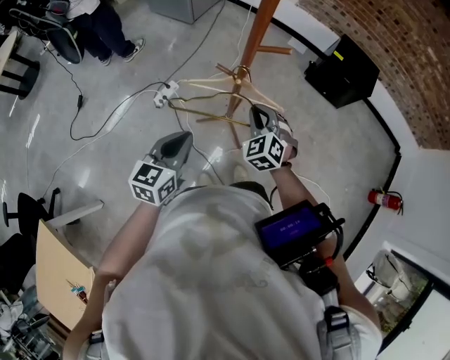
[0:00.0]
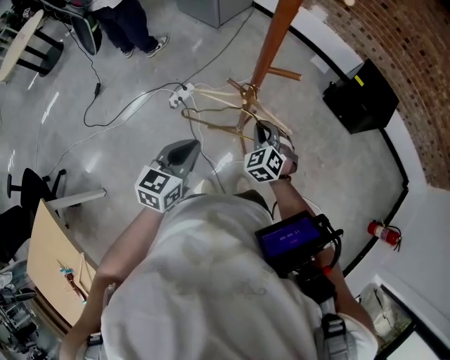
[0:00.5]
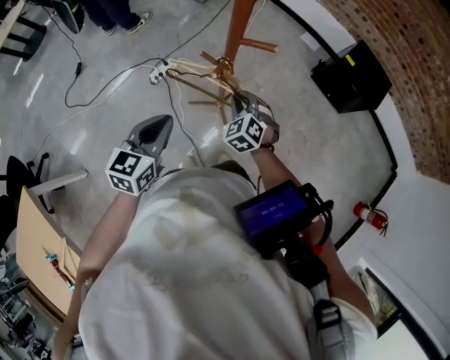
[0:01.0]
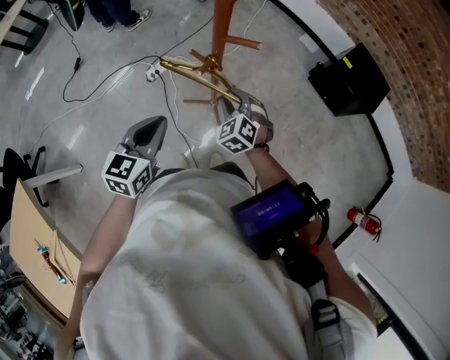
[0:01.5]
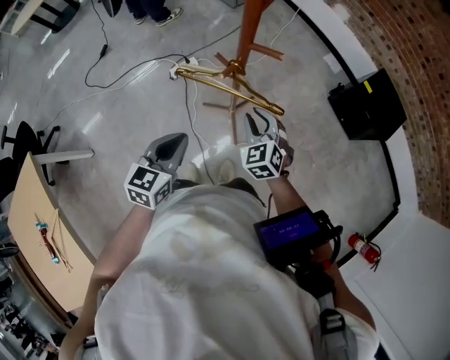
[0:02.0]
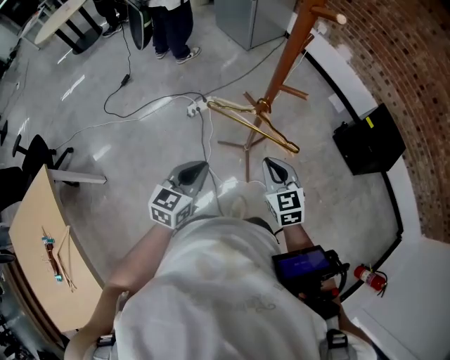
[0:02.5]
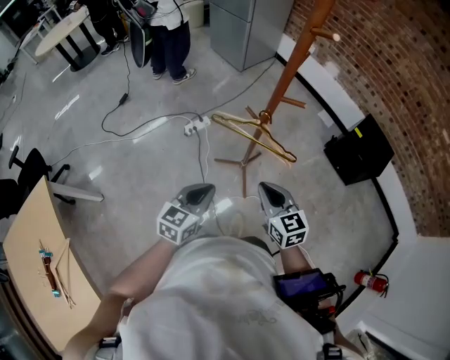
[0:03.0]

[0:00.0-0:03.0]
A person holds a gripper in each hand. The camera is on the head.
0:00.0 to 0:01.5: The left gripper moves some 5 cm. Meanwhile the right gripper moves downward, approximately 5 cm, and opens its fingers.
0:01.5 to 0:03.0: The left gripper heads backward, covering about 15 cm. Meanwhile the right gripper is displaced backward and upward by about 20 cm, changes its angle by roughly 40 degrees, and closes its fingers.

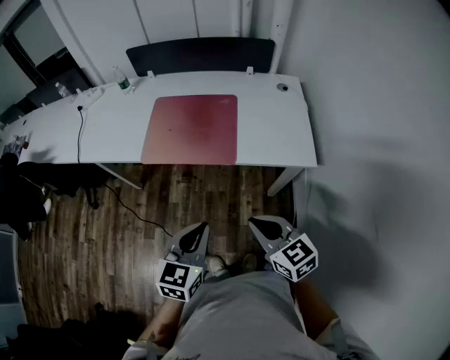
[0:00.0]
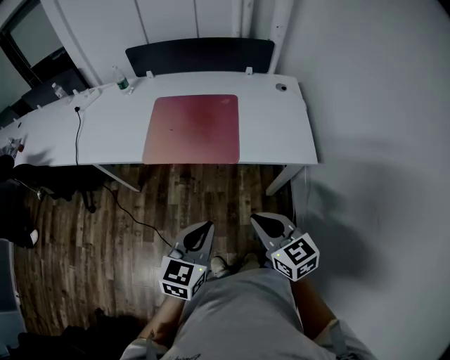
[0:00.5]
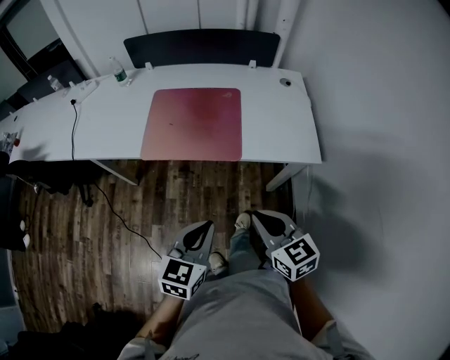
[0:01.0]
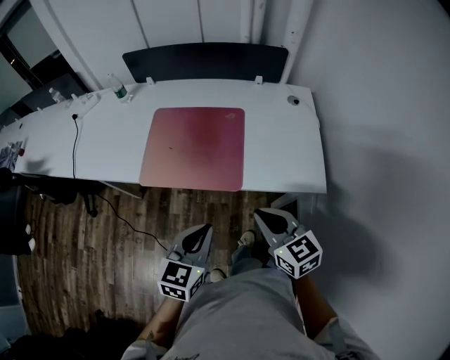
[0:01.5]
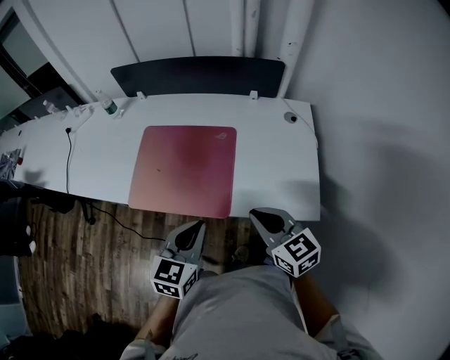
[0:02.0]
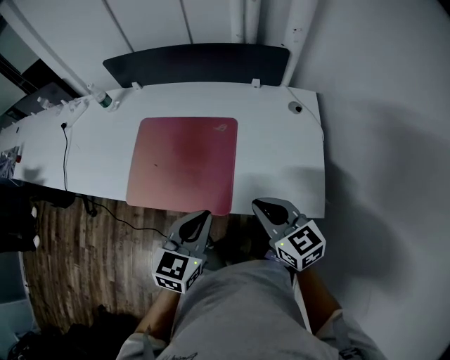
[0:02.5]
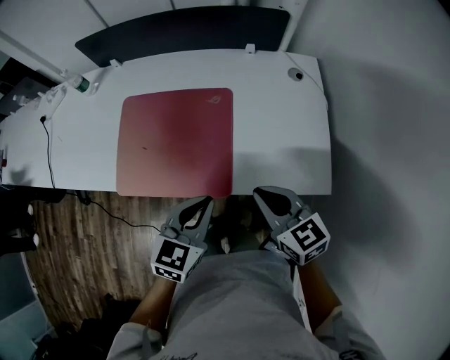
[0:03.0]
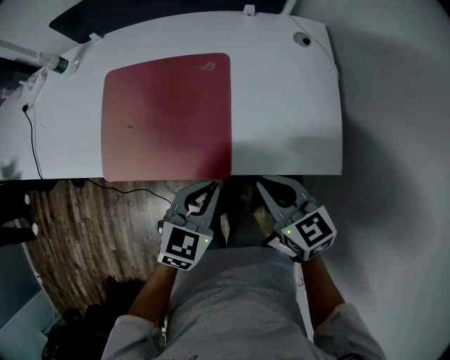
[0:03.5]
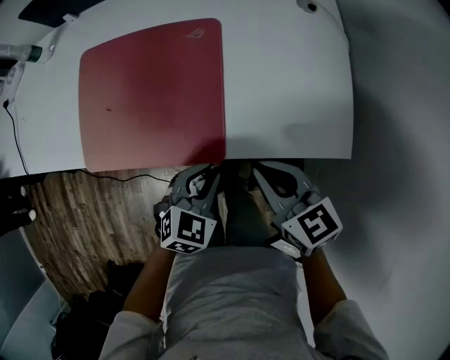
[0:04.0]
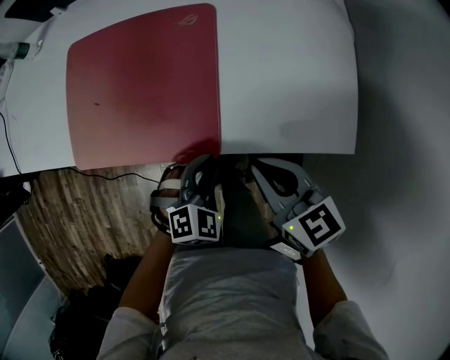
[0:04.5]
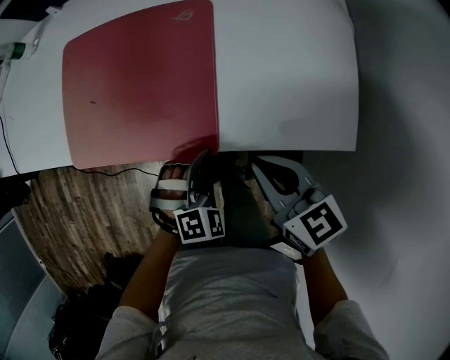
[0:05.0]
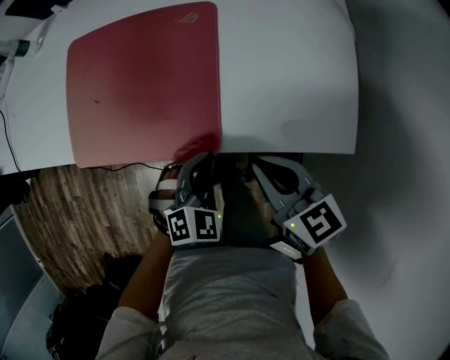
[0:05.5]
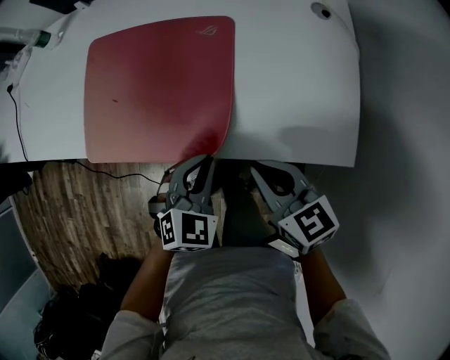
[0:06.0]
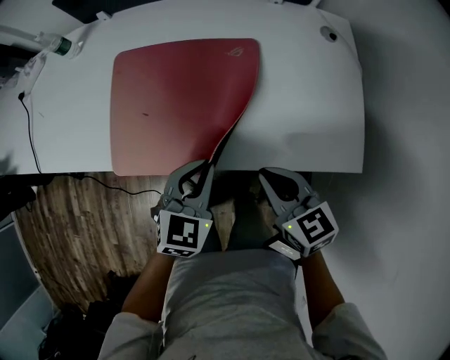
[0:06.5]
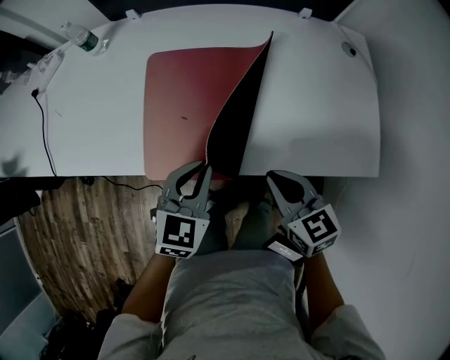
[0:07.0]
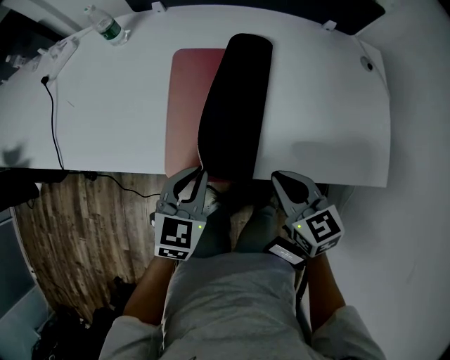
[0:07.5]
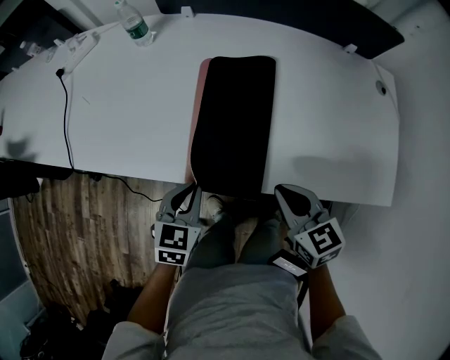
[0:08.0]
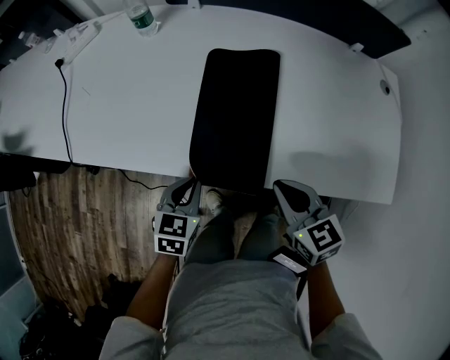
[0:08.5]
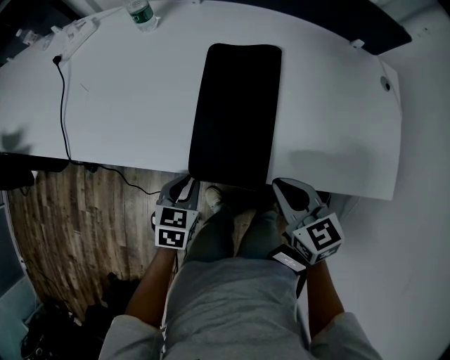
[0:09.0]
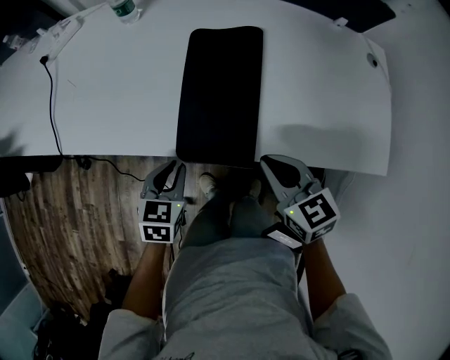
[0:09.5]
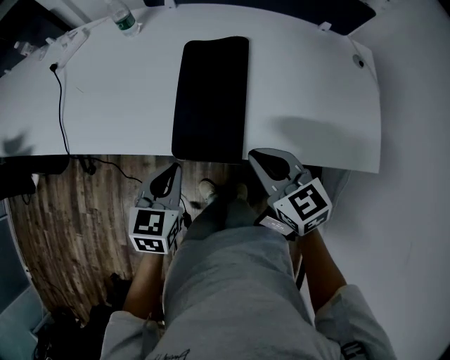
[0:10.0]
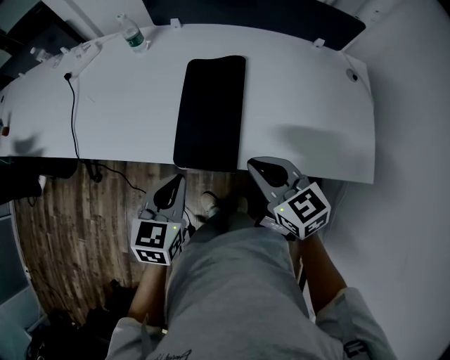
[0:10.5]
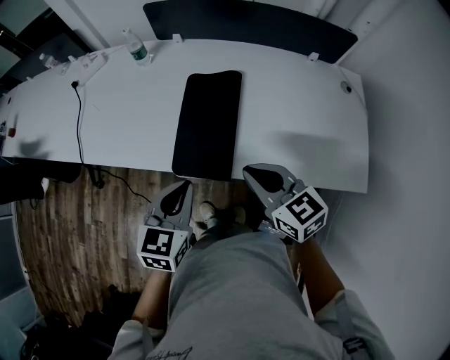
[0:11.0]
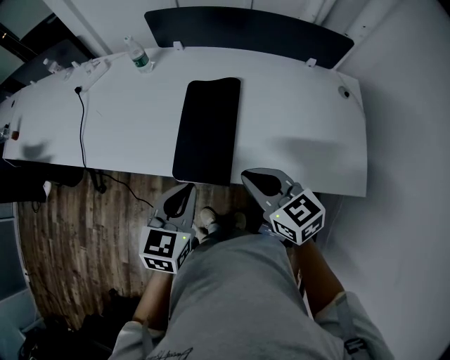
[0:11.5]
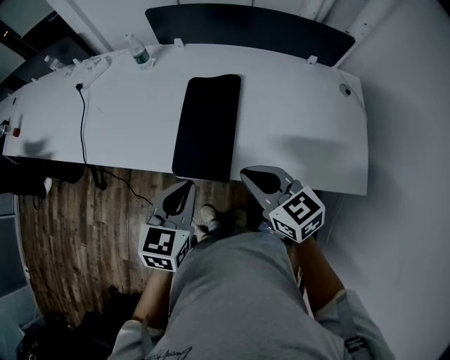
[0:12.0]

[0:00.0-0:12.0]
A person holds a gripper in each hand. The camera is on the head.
0:00.0 to 0:02.0: The grippers both shift forward by roughly 25 cm.
0:02.0 to 0:04.0: The right gripper is displaced downward by roughly 15 cm. The left gripper heads downward, covering some 20 cm, and rotates roughly 40 degrees.
0:06.0 to 0:08.0: Both grippers move to the left, about 30 cm. The left gripper turns by some 30 degrees.
0:08.0 to 0:10.0: Both grippers move upward, roughly 5 cm.
0:10.0 to 0:12.0: The right gripper is displaced upward by about 5 cm. Meanwhile the left gripper is displaced upward and to the right by about 15 cm.

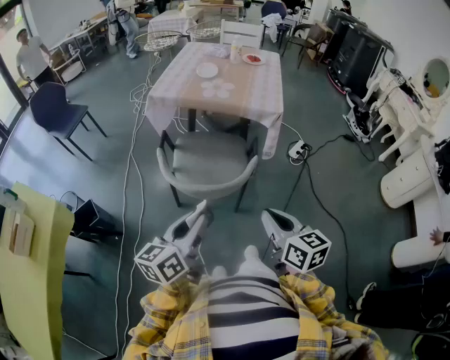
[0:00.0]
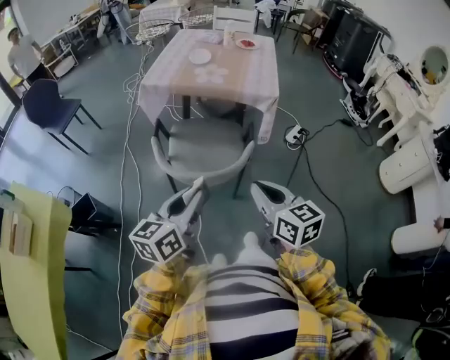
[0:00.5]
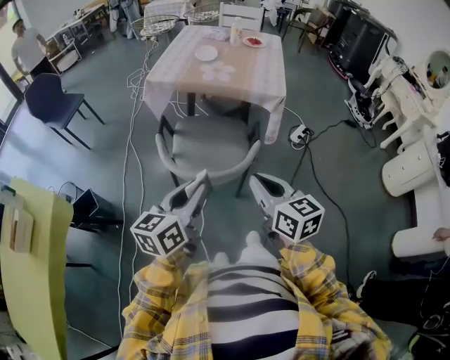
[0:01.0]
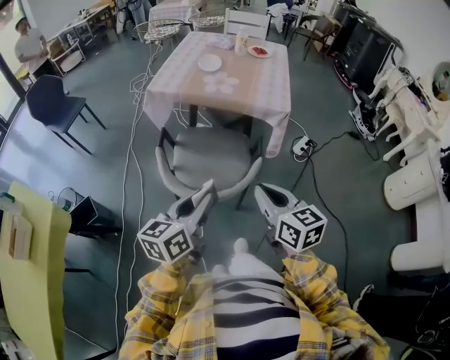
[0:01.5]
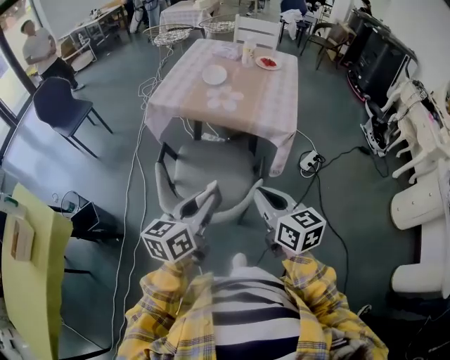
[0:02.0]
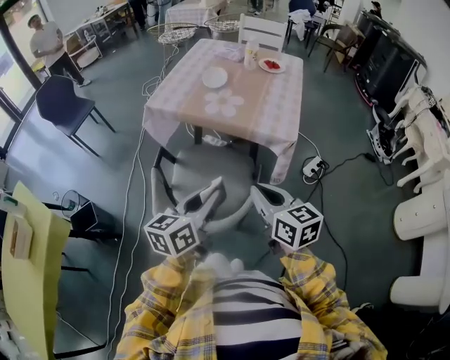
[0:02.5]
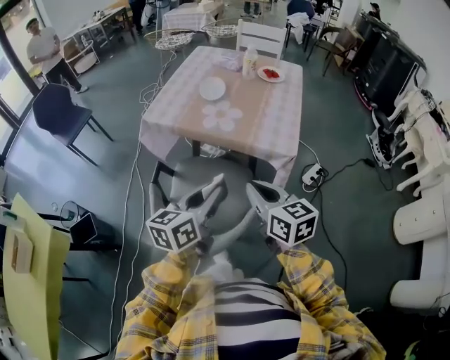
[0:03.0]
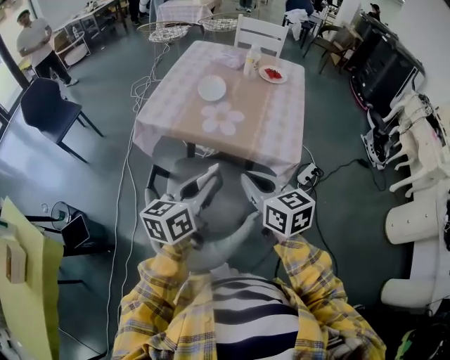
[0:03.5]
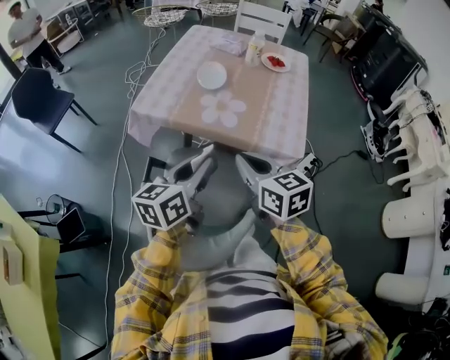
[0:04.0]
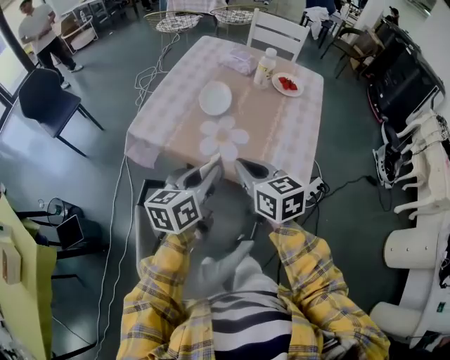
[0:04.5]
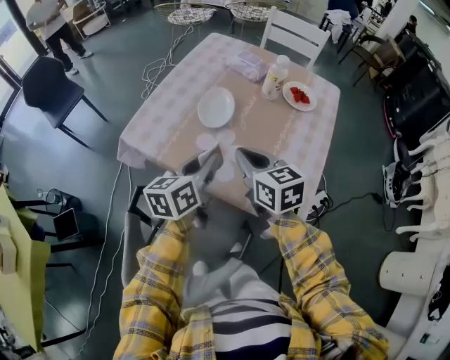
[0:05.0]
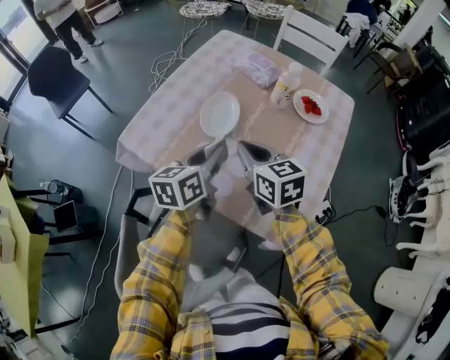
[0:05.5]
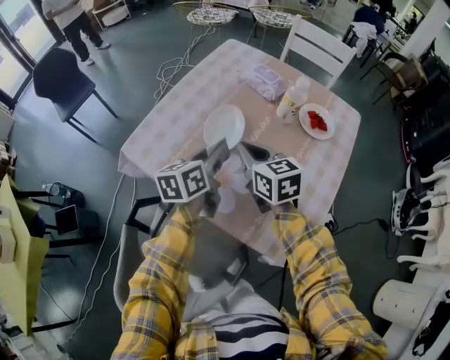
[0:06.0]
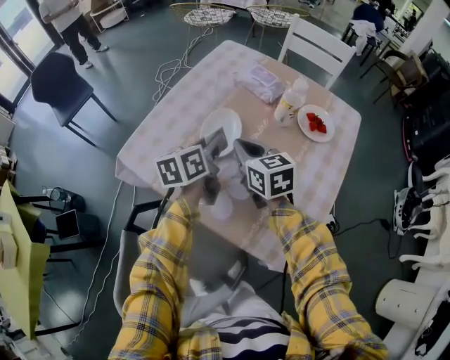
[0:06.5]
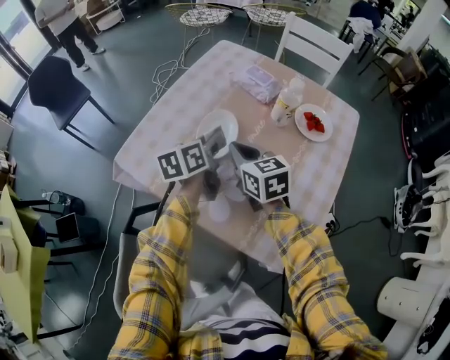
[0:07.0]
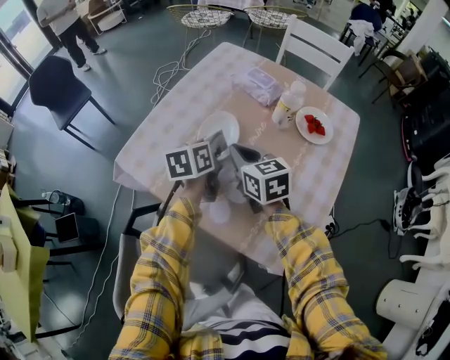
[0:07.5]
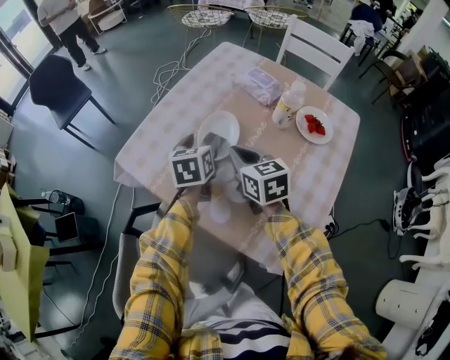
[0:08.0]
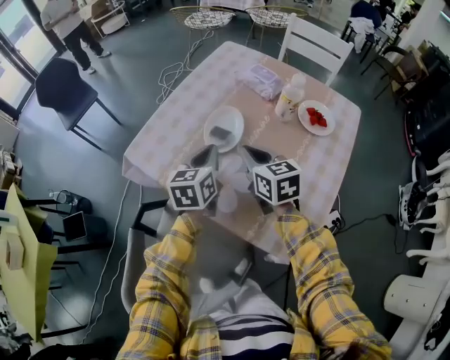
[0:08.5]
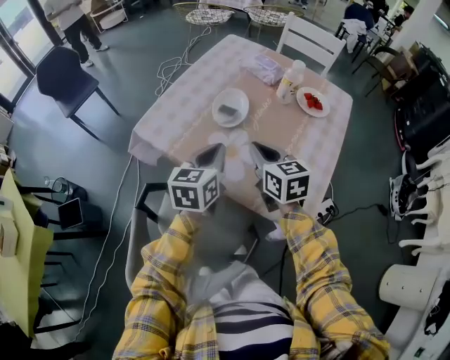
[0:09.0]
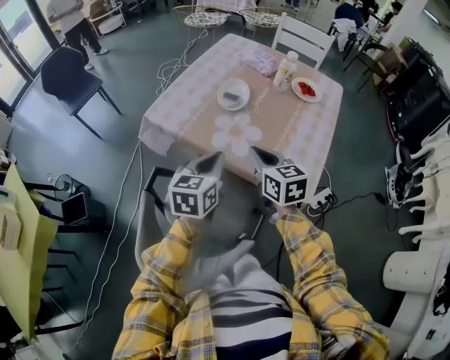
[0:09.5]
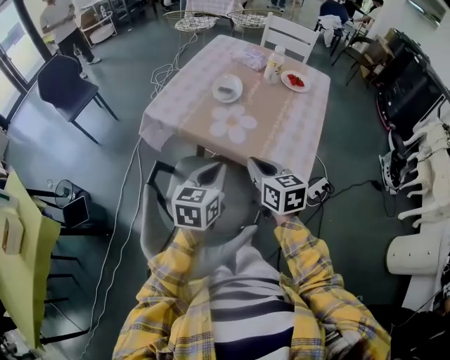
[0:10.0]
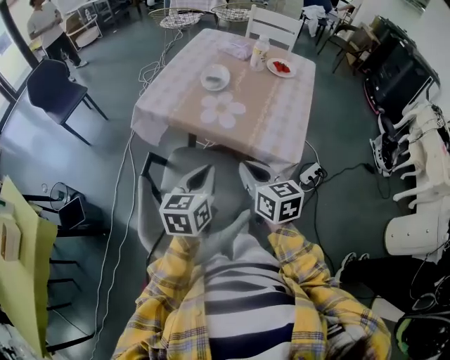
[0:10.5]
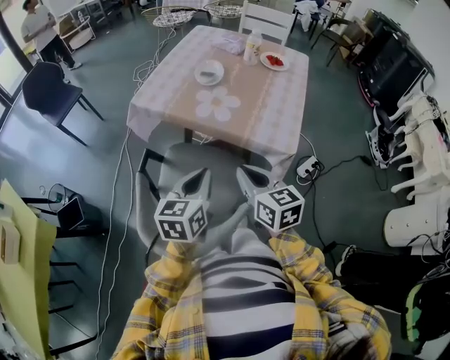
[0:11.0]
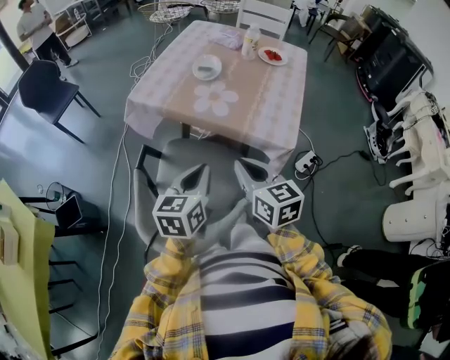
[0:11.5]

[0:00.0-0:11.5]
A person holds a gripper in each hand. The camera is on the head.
0:00.0 to 0:02.0: Both grippers travel together forward, some 20 cm.
0:02.0 to 0:04.0: Both grippers move forward, roughly 20 cm.
0:04.0 to 0:06.0: The grippers both shift forward by roughly 35 cm. The left gripper turns by roughly 20 degrees.
0:06.0 to 0:07.5: The left gripper shifts roughly 5 cm forward.
0:07.5 to 0:09.5: Both grippers move backward, roughly 25 cm. The left gripper rotates about 20 degrees, and opens, then closes once more.
0:09.5 to 0:11.5: Both grippers move backward, roughly 20 cm.
